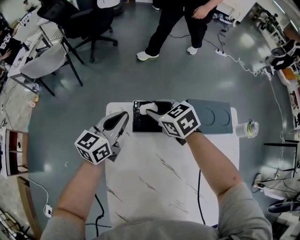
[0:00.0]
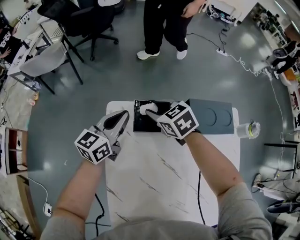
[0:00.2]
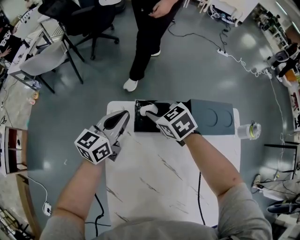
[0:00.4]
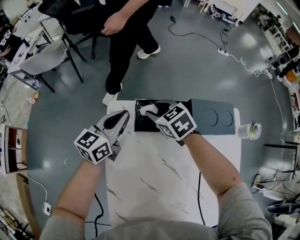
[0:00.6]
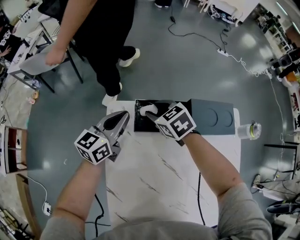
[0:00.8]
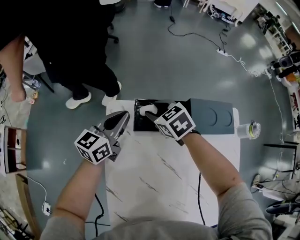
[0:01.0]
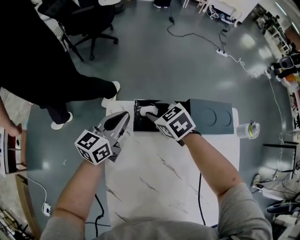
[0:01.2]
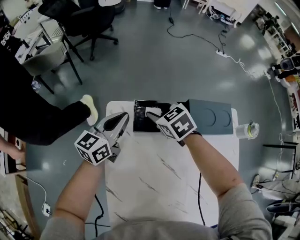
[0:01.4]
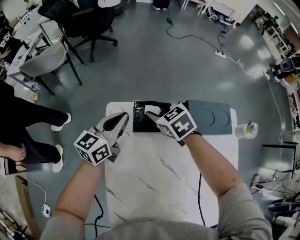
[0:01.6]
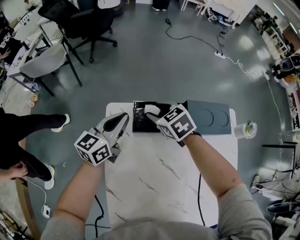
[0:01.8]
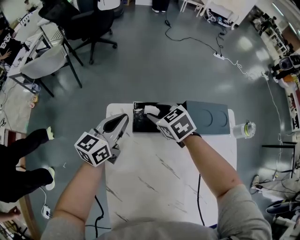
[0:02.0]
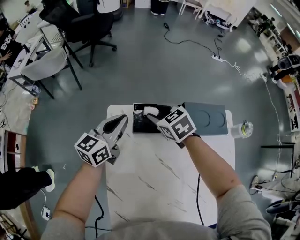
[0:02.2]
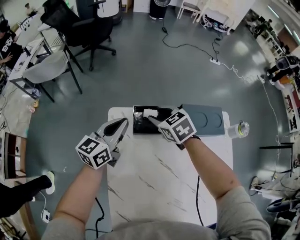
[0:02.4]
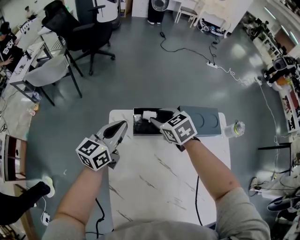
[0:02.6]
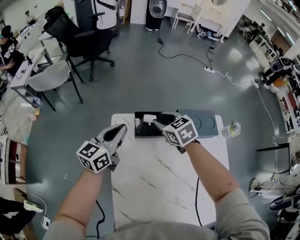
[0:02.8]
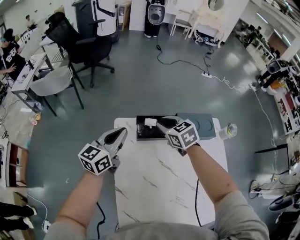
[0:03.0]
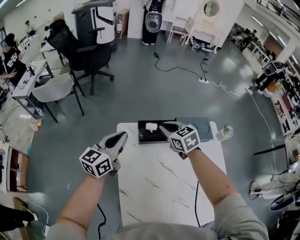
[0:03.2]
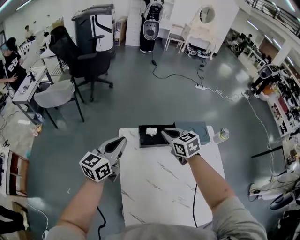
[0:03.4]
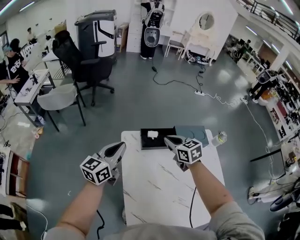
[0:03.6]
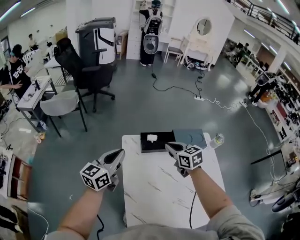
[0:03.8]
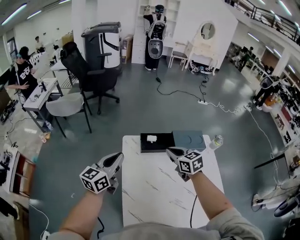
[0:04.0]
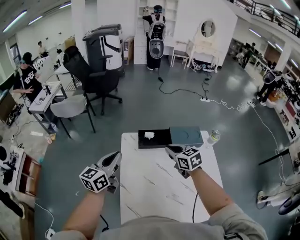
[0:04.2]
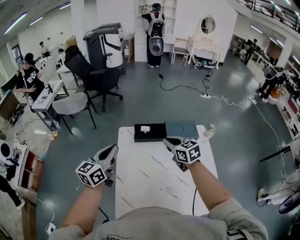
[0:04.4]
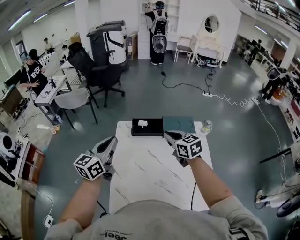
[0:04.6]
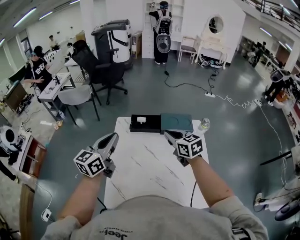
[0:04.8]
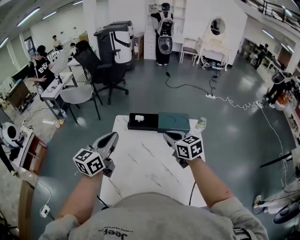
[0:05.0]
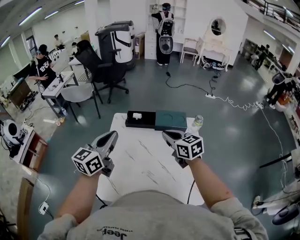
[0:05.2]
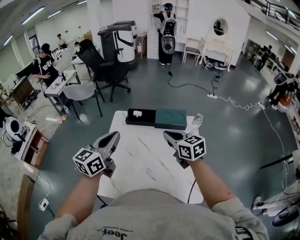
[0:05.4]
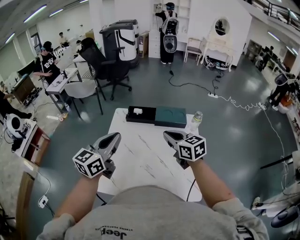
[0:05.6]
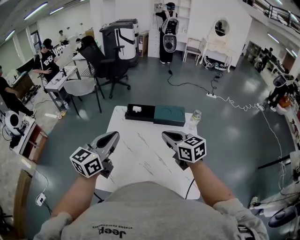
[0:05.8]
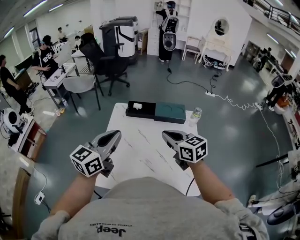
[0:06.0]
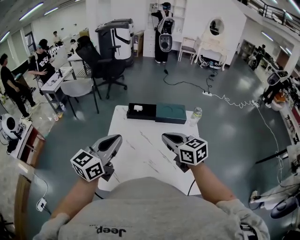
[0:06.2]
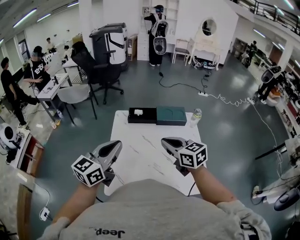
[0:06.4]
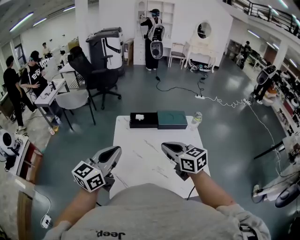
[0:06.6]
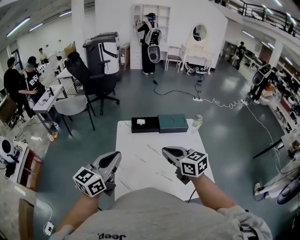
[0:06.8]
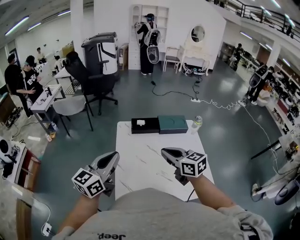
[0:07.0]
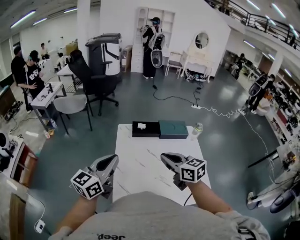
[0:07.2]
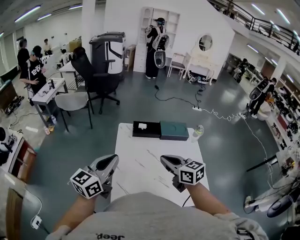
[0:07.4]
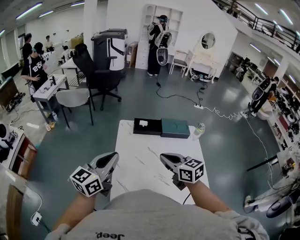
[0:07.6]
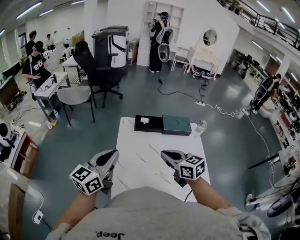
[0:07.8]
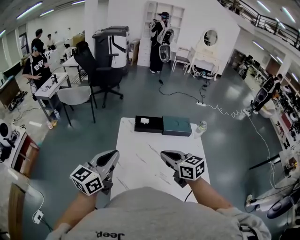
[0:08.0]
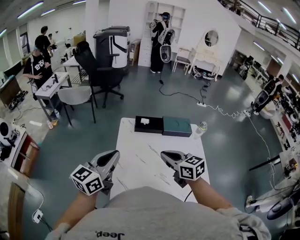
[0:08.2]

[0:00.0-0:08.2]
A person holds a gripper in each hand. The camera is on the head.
0:00.0 to 0:01.6: The grippers stay close to where they were, moving slightly.
0:01.6 to 0:03.2: Both grippers travel together upward and backward, roughly 15 cm. The right gripper closes up.
0:03.2 to 0:05.0: The right gripper travels backward, to the right and upward by some 30 cm, while the left gripper moves backward and upward, roughly 30 cm.
0:05.0 to 0:06.6: The left gripper is displaced backward by some 10 cm. Meanwhile the right gripper is displaced backward and to the left by approximately 15 cm.
0:06.6 to 0:08.2: The left gripper heads to the left, covering roughly 5 cm.

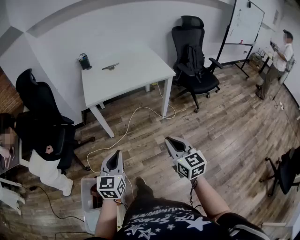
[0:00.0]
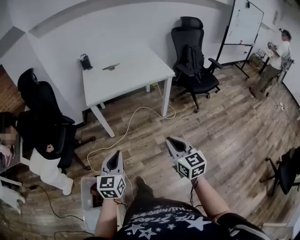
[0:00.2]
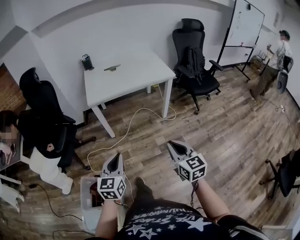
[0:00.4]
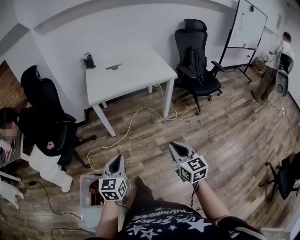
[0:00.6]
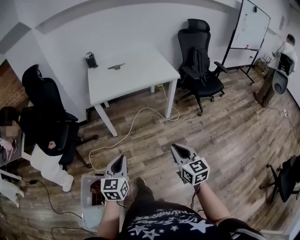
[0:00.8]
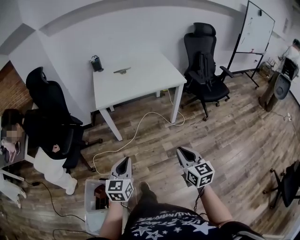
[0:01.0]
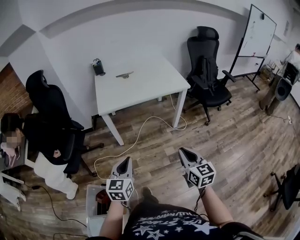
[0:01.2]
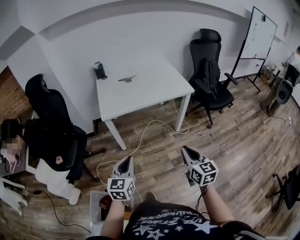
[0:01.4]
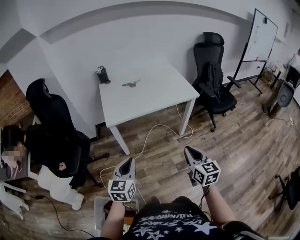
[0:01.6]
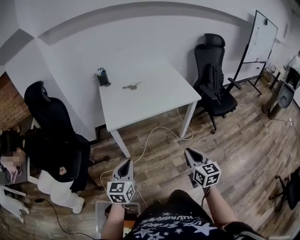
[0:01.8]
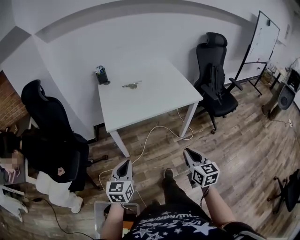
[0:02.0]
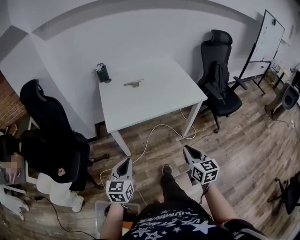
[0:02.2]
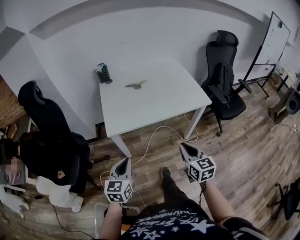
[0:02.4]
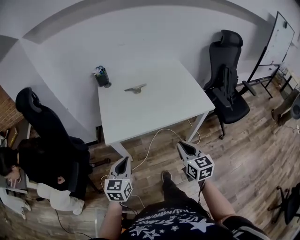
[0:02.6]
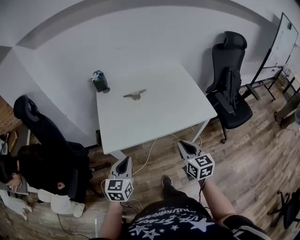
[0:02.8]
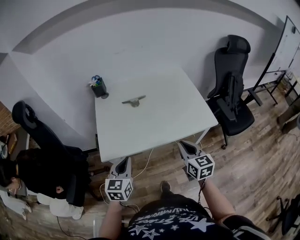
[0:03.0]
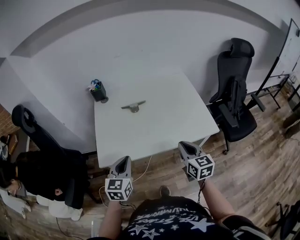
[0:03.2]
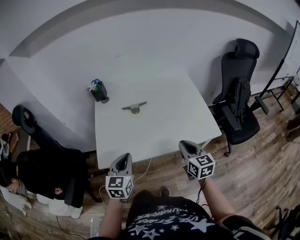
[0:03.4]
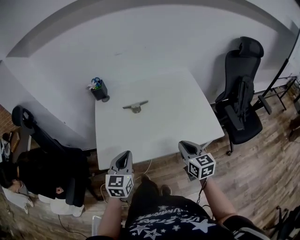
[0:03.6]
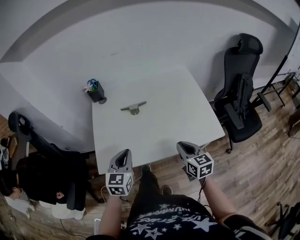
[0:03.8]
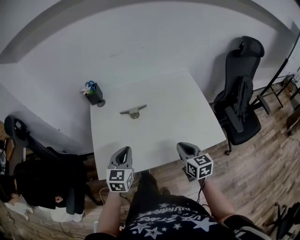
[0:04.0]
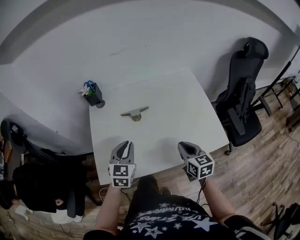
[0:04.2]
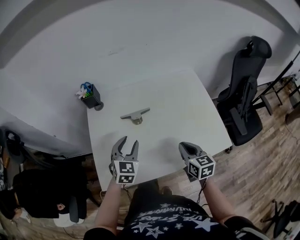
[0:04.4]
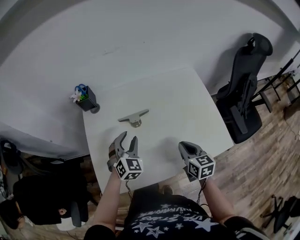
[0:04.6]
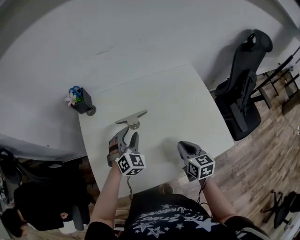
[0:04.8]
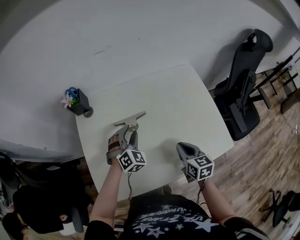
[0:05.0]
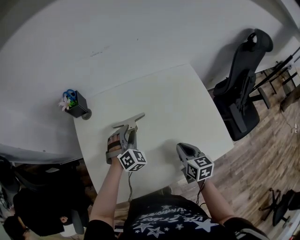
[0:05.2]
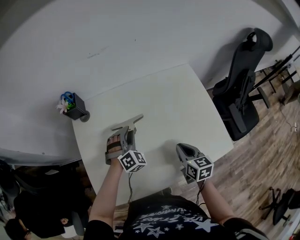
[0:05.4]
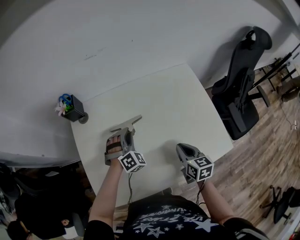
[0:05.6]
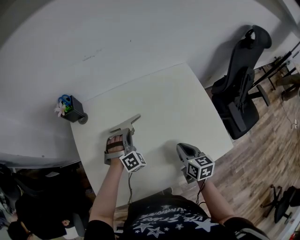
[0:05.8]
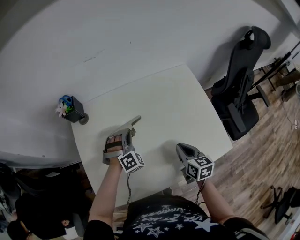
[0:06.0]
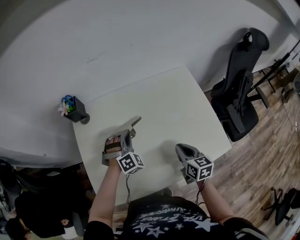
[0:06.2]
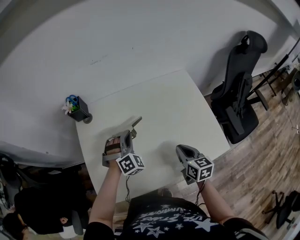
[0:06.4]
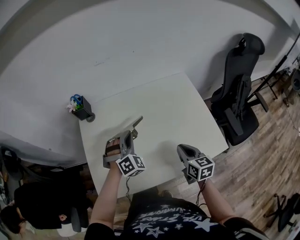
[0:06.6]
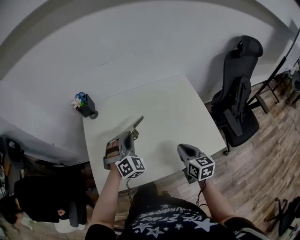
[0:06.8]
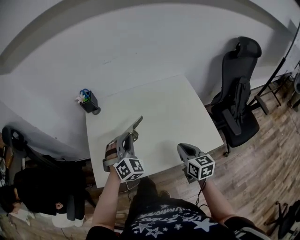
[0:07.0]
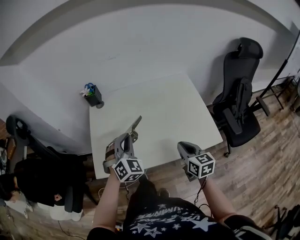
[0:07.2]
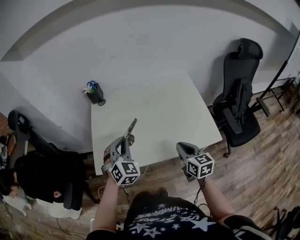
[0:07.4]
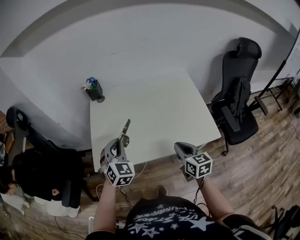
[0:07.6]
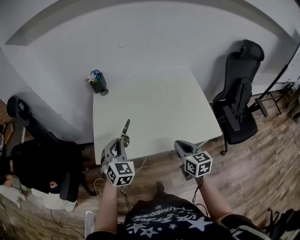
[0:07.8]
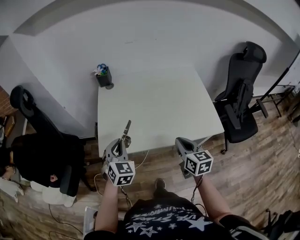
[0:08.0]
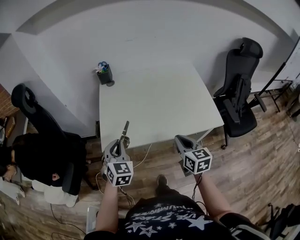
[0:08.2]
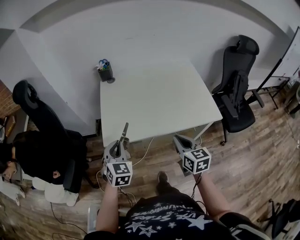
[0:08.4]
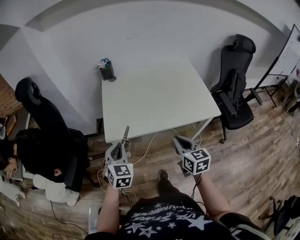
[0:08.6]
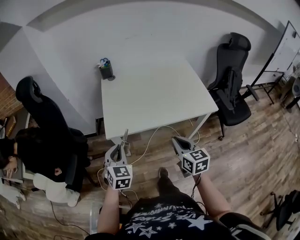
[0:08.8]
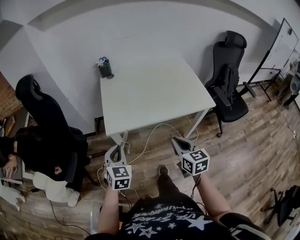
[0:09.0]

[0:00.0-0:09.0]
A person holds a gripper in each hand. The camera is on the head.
0:00.0 to 0:01.6: The left gripper goes roughly 20 cm forward and to the left, while the right gripper moves forward, roughly 15 cm.
0:01.6 to 0:03.0: The two grippers go about 35 cm forward.
0:03.0 to 0:04.4: Both grippers move forward, approximately 30 cm. The left gripper rotates approximately 20 degrees, and opens.
0:04.4 to 0:06.0: The right gripper moves forward and downward, roughly 10 cm. Meanwhile the left gripper shifts some 20 cm forward and downward, twists roughly 50 degrees clockwise, seen from behind, and closes up.
0:06.0 to 0:07.6: Both grippers move backward and upward, approximately 25 cm. The left gripper rotates some 40 degrees.
0:07.6 to 0:09.0: Both grippers move backward and to the left, about 30 cm.

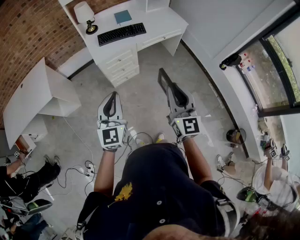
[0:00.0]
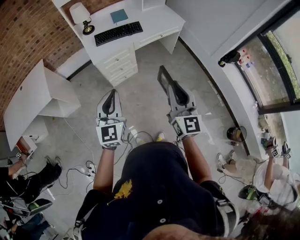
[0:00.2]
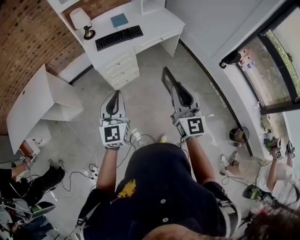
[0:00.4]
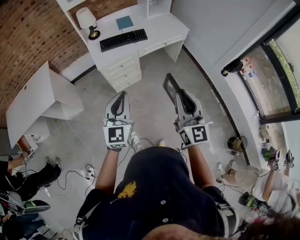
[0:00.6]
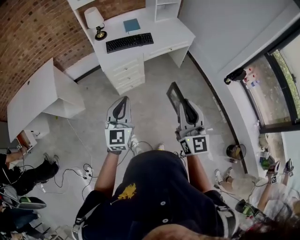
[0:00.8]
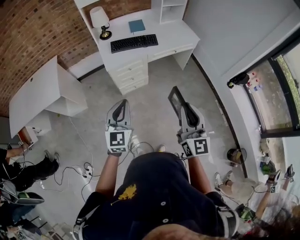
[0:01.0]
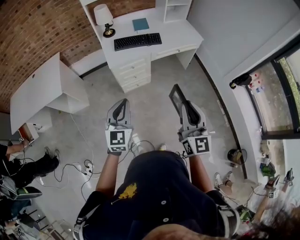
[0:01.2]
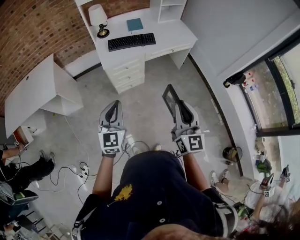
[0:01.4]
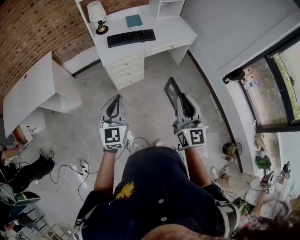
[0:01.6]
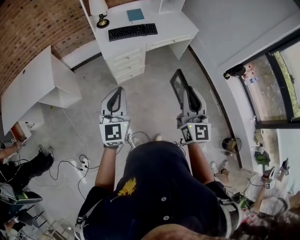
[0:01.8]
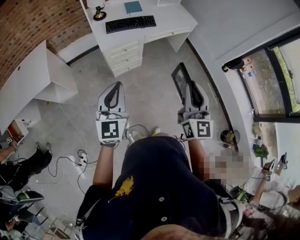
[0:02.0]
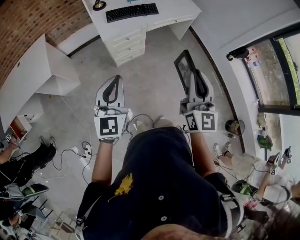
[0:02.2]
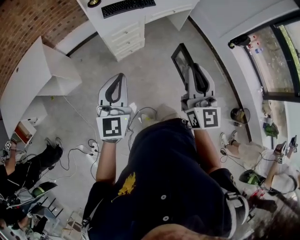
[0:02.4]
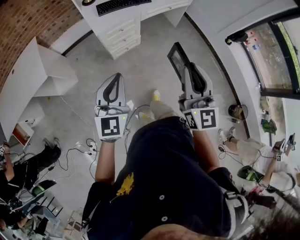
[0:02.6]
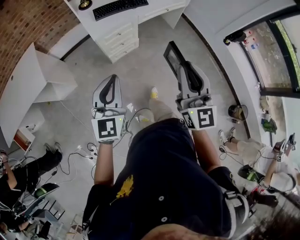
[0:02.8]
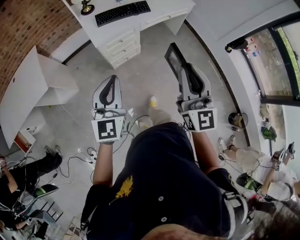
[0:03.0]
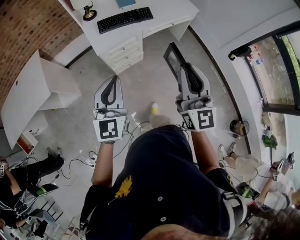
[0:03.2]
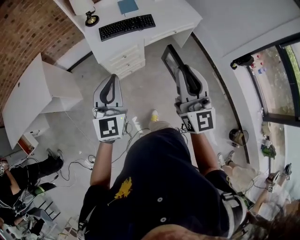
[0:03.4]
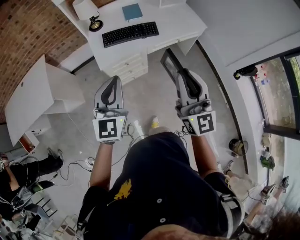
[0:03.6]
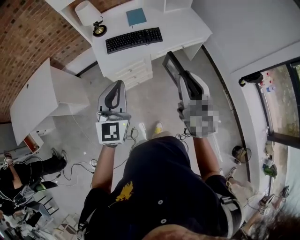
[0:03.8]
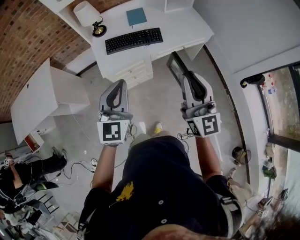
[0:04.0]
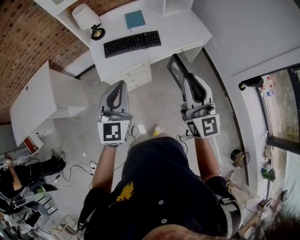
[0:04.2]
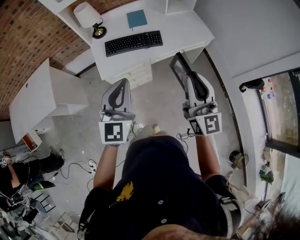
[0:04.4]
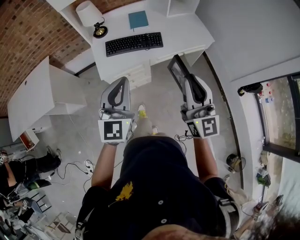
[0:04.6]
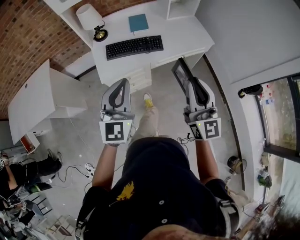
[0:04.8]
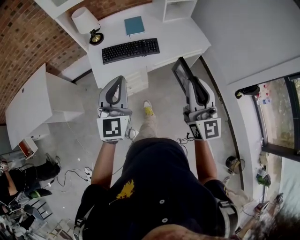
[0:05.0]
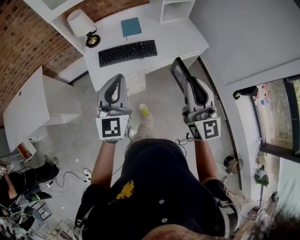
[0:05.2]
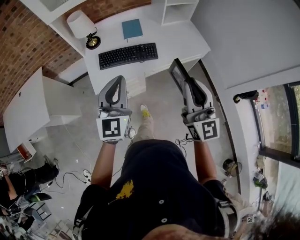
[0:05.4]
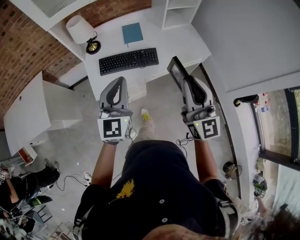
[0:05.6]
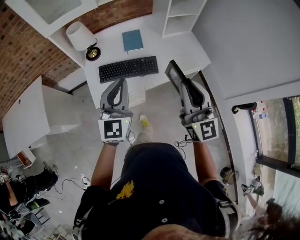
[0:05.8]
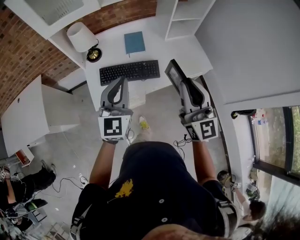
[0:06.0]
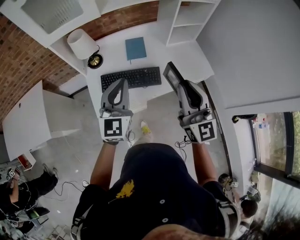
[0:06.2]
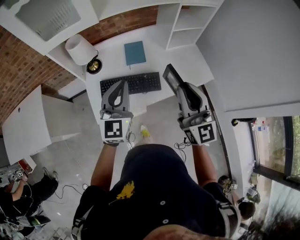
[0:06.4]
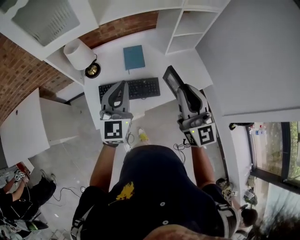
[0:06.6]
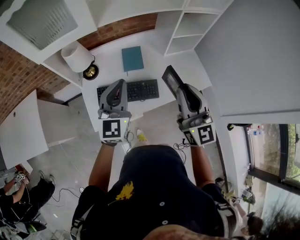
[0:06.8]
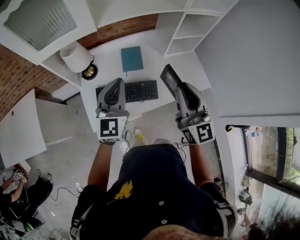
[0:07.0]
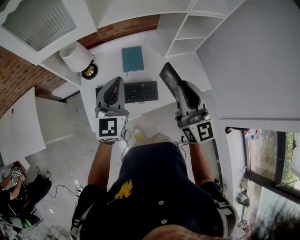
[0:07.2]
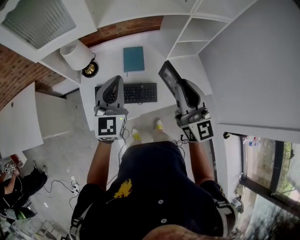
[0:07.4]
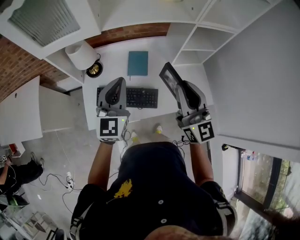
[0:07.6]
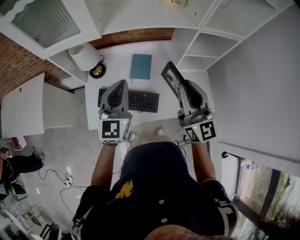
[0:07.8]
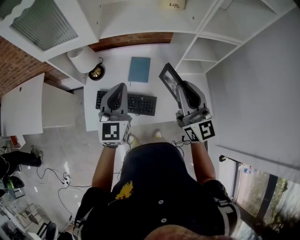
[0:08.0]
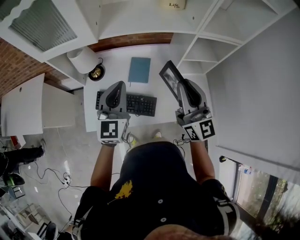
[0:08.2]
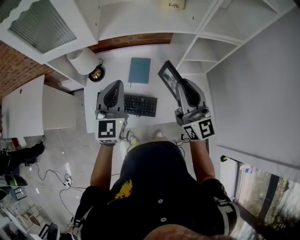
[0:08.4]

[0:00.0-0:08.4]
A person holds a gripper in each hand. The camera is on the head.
0:00.0 to 0:01.4: There are only small adjustments of the grippers.
0:01.4 to 0:02.8: The right gripper shifts approximately 10 cm to the left.
0:02.8 to 0:04.2: Both grippers travel together forward and to the right, some 35 cm.
0:04.2 to 0:05.6: Both grippers move forward, some 15 cm.
0:05.6 to 0:07.0: Both grippers travel together forward, some 25 cm.
0:07.0 to 0:08.4: The left gripper shifts roughly 10 cm forward and to the right. The right gripper travels forward and to the right by about 15 cm.
